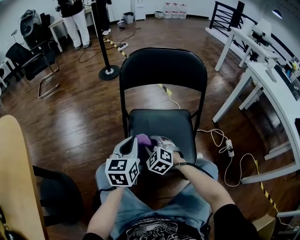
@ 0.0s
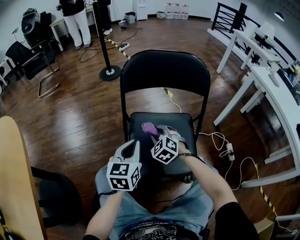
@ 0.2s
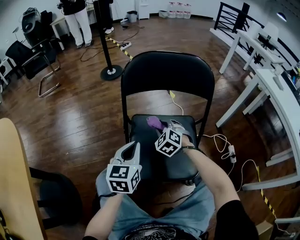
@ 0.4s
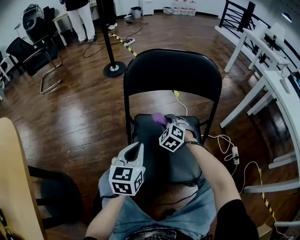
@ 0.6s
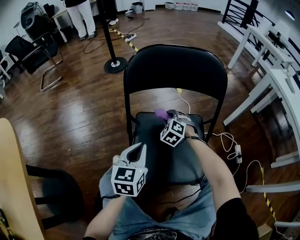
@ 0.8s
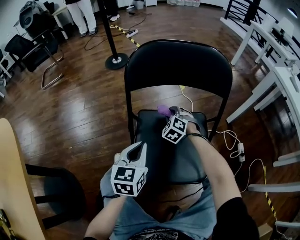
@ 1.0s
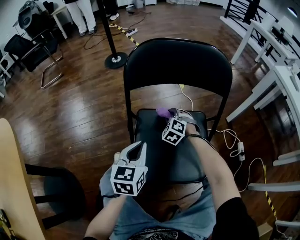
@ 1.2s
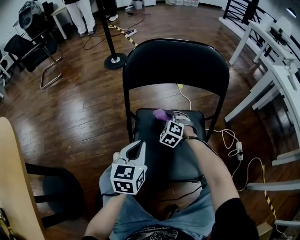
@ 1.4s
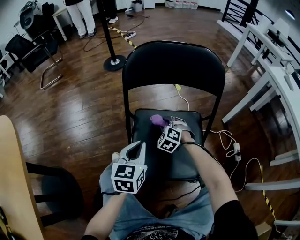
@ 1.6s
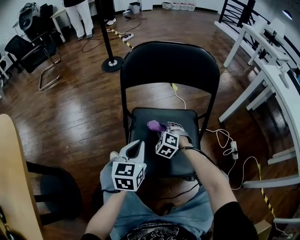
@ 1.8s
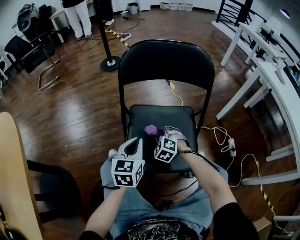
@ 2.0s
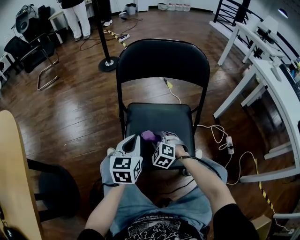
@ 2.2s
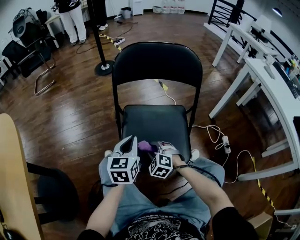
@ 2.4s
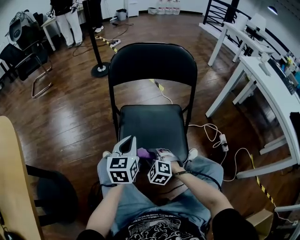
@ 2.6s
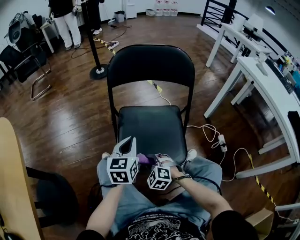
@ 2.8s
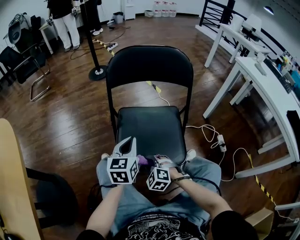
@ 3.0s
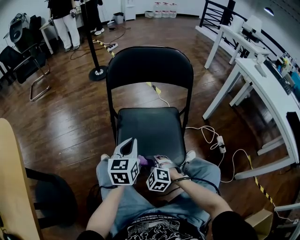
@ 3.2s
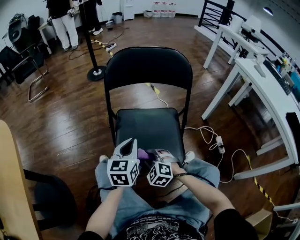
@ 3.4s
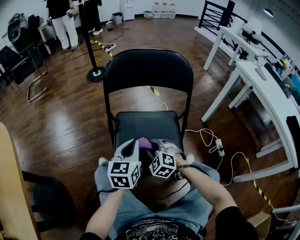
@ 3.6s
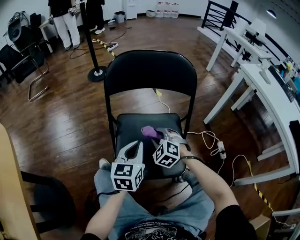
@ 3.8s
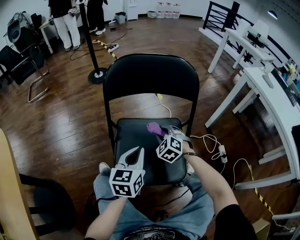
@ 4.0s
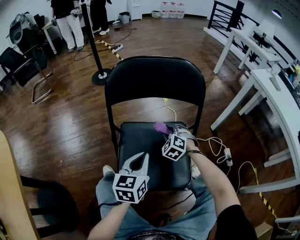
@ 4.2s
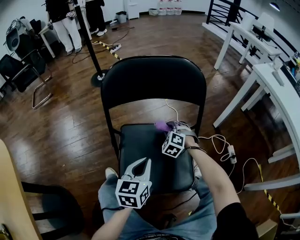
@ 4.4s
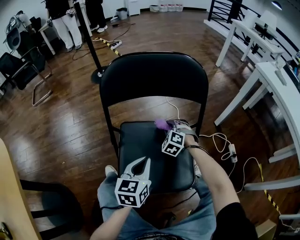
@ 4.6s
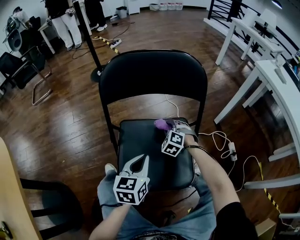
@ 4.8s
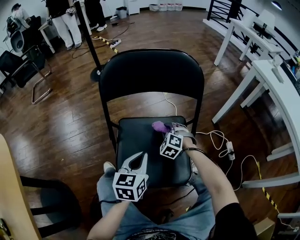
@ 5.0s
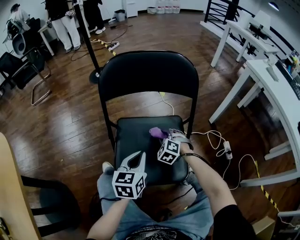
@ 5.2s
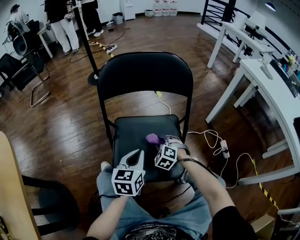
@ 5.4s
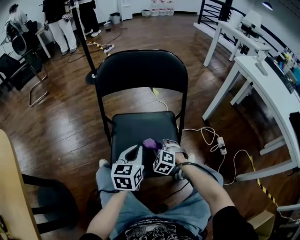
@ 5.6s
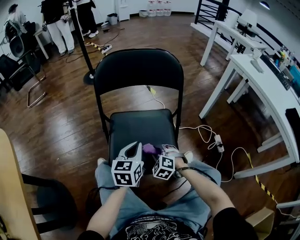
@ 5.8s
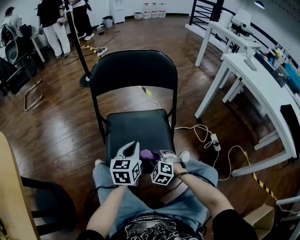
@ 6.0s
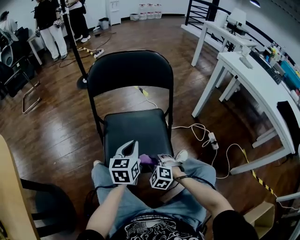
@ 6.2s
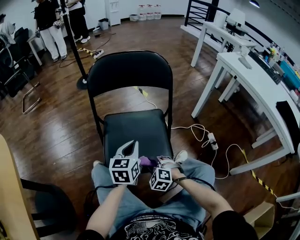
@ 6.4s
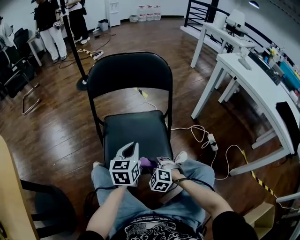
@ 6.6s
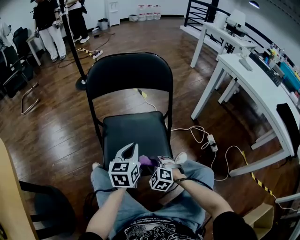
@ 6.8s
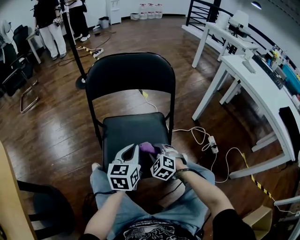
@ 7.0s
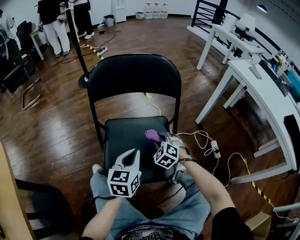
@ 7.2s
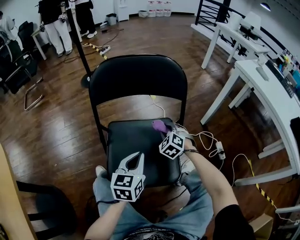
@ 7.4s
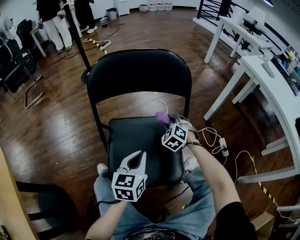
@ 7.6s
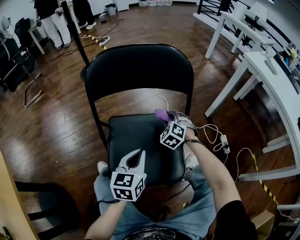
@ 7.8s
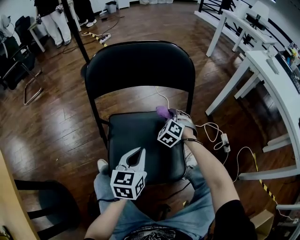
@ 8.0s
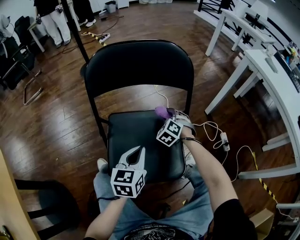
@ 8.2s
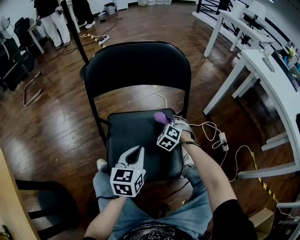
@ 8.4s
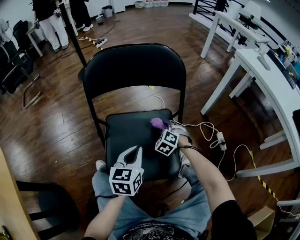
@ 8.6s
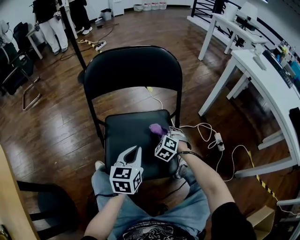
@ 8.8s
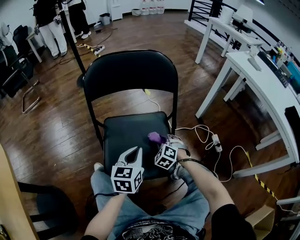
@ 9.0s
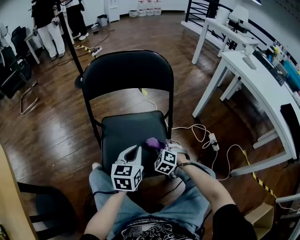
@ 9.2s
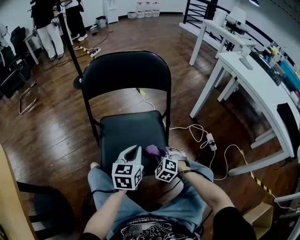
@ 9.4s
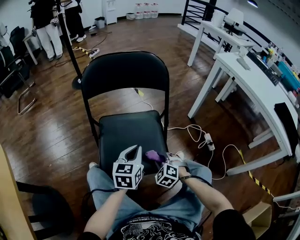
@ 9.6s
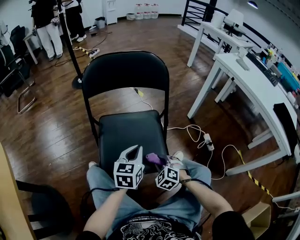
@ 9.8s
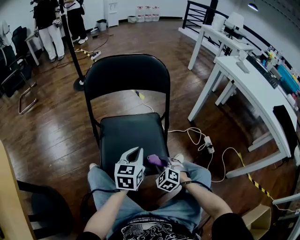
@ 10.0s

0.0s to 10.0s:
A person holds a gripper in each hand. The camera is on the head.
0.0s to 1.4s: The left gripper heads forward, covering some 5 cm, while the right gripper is displaced forward by roughly 20 cm.
1.4s to 2.8s: The right gripper travels backward by about 30 cm. The left gripper heads backward, covering approximately 5 cm.
2.8s to 4.2s: The left gripper is displaced to the right by some 5 cm; the right gripper travels forward and to the right by some 30 cm.
4.2s to 5.8s: The left gripper shifts by about 5 cm; the right gripper shifts roughly 20 cm backward.
5.8s to 7.2s: The right gripper shifts roughly 10 cm forward.
7.2s to 8.6s: The right gripper goes approximately 5 cm forward.
8.6s to 10.0s: The left gripper ends up some 5 cm from where it was; the right gripper travels backward by some 20 cm.

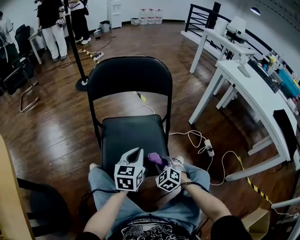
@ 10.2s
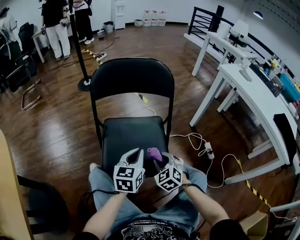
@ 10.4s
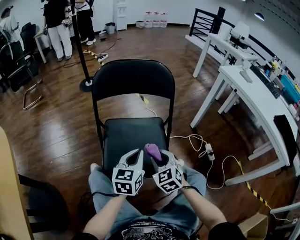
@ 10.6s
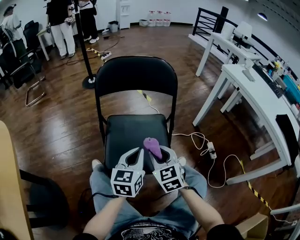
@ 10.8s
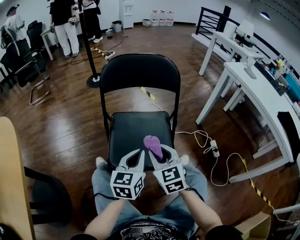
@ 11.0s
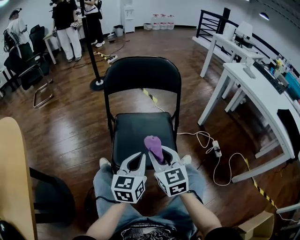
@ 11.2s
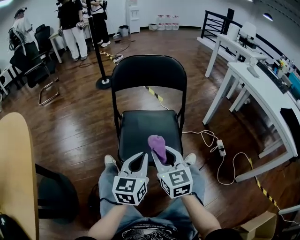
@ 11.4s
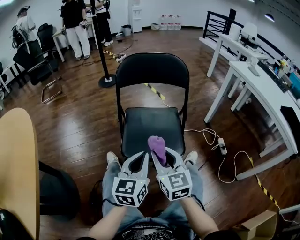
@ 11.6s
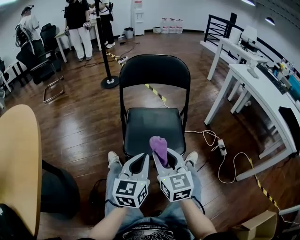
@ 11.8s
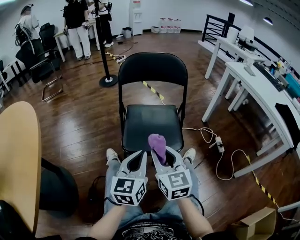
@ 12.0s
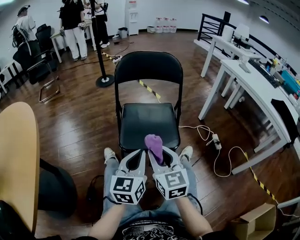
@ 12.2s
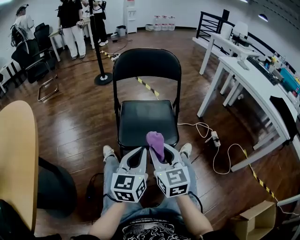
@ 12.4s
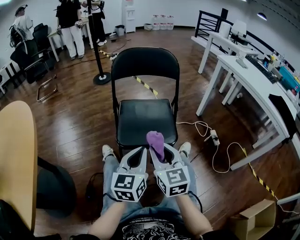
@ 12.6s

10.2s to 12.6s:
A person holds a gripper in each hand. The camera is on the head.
10.2s to 11.4s: The right gripper travels upward and to the left by approximately 25 cm, and angles its fingers upward, by approximately 30 degrees. The left gripper is displaced backward, upward and to the left by some 15 cm.
11.4s to 12.6s: The grippers both shift backward by about 10 cm.

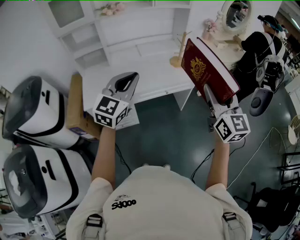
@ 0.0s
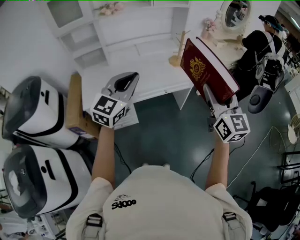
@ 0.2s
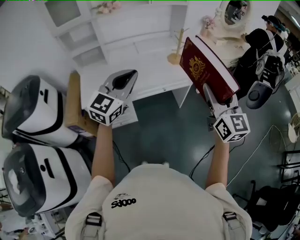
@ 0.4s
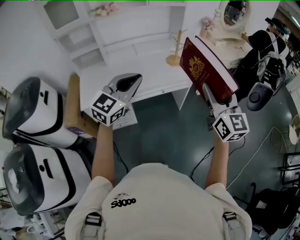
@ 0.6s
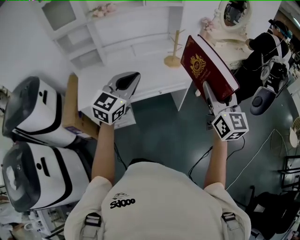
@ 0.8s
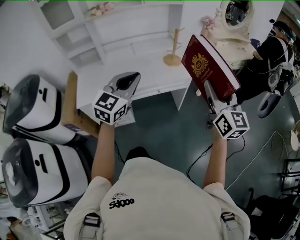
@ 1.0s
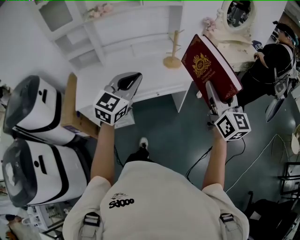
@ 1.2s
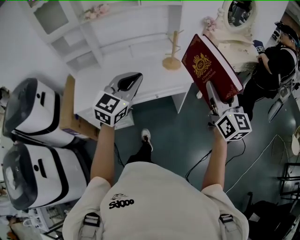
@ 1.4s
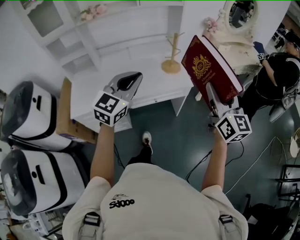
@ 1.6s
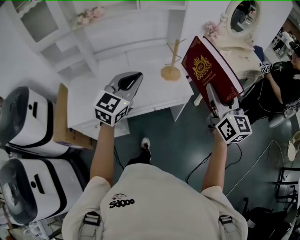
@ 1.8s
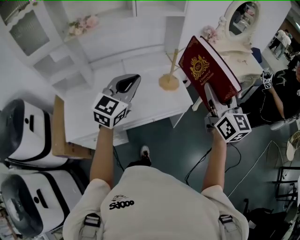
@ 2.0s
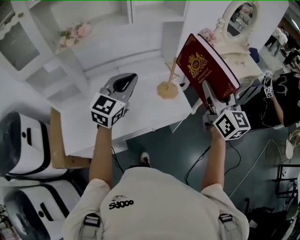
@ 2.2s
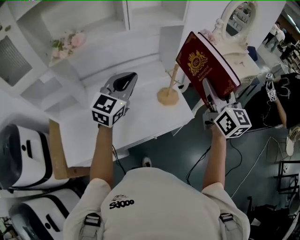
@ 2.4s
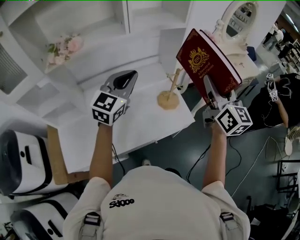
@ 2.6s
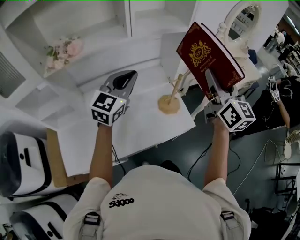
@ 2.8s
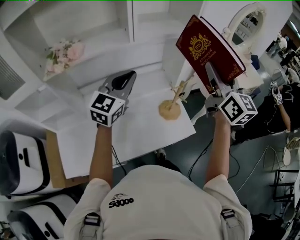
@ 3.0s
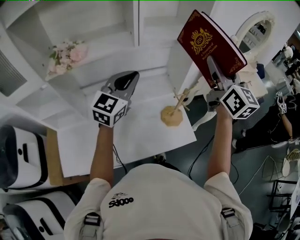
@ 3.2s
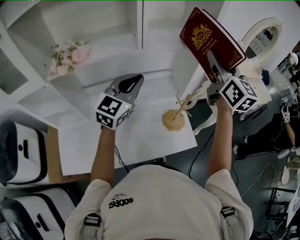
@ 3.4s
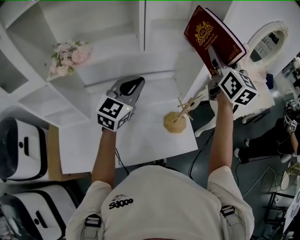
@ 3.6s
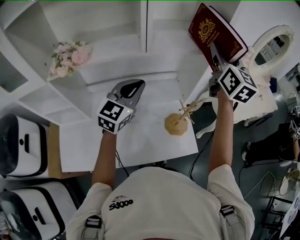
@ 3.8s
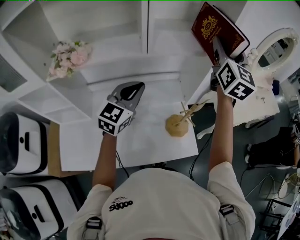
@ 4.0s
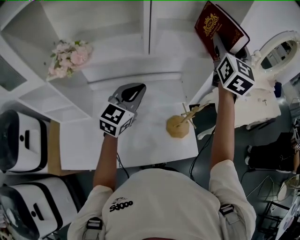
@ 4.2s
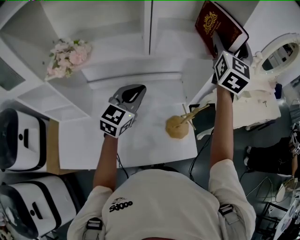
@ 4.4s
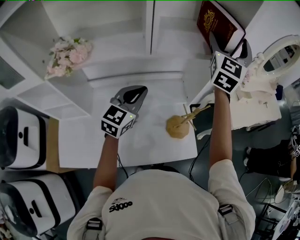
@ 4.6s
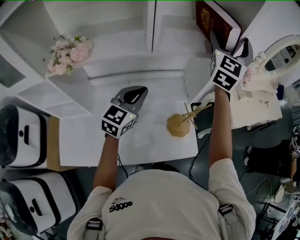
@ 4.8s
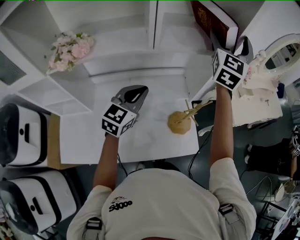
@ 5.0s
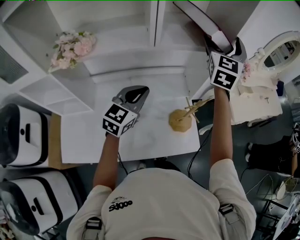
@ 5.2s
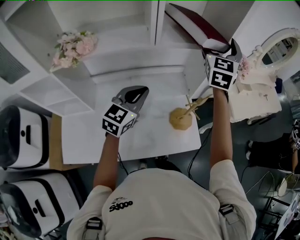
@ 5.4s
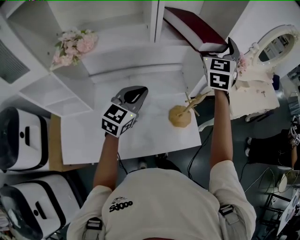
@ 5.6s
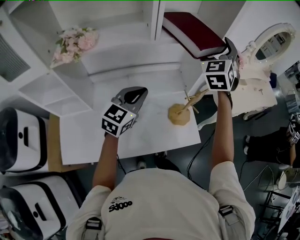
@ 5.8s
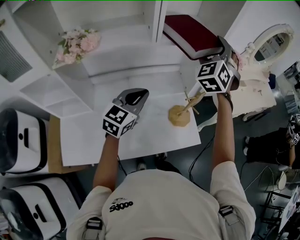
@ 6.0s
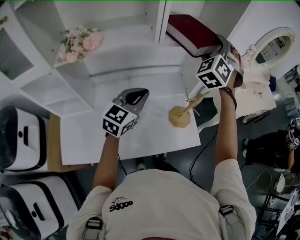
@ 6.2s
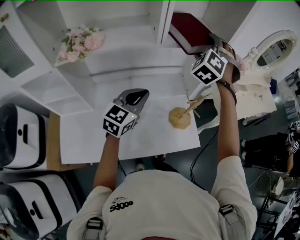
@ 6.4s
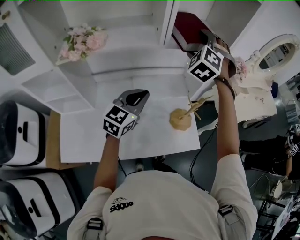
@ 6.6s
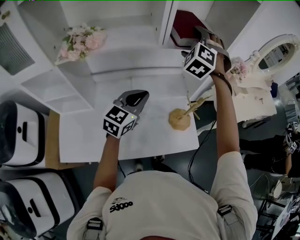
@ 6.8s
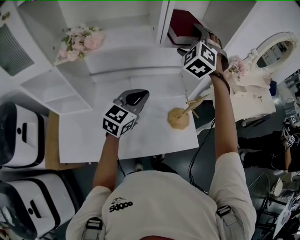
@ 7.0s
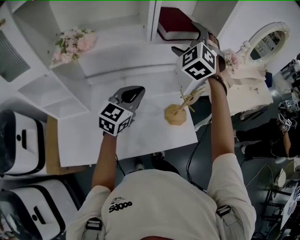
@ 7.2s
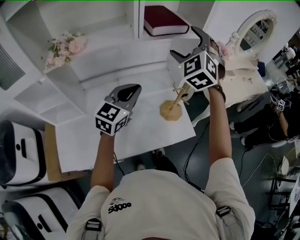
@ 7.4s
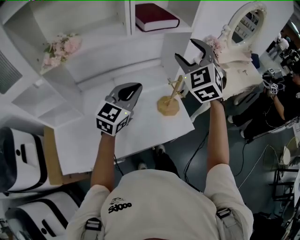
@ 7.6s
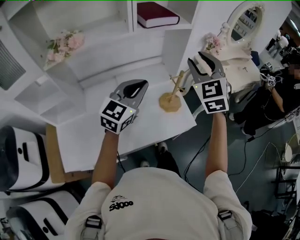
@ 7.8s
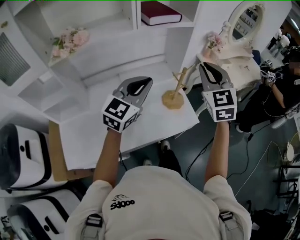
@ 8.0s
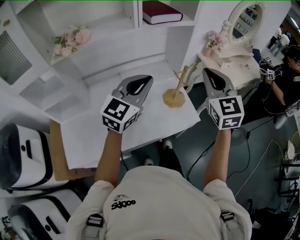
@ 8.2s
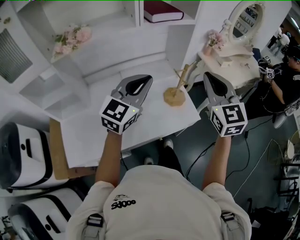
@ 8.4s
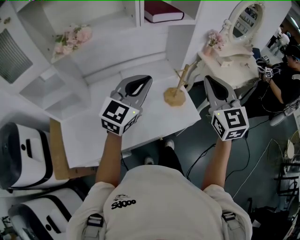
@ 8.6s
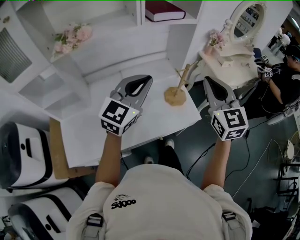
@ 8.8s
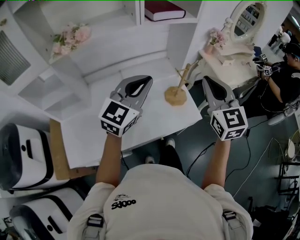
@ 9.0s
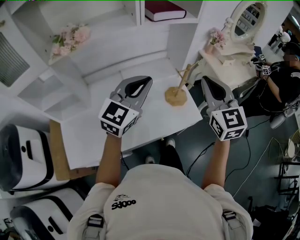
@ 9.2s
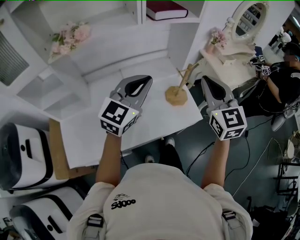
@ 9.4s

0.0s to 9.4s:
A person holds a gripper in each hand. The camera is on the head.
0.0s to 1.6s: The grippers both shift forward and to the right by some 15 cm.
1.6s to 3.2s: Both grippers travel together forward, about 40 cm.
3.2s to 4.8s: The left gripper heads downward, covering roughly 10 cm. The right gripper is displaced forward by roughly 20 cm, swivels roughly 40 degrees, and opens.
4.8s to 6.2s: The right gripper moves downward and backward, some 10 cm, and twists roughly 50 degrees counterclockwise, seen from behind. The left gripper shifts approximately 5 cm backward.
6.2s to 7.8s: The right gripper goes roughly 20 cm backward and to the right, swivels some 30 degrees, and closes its fingers, while the left gripper shifts about 10 cm to the right and backward.
7.8s to 9.4s: The right gripper goes approximately 10 cm backward, and turns by approximately 20 degrees.

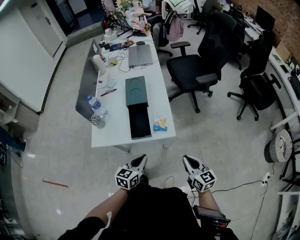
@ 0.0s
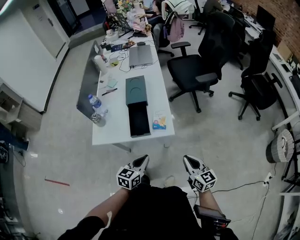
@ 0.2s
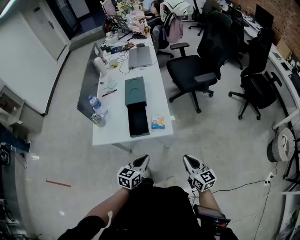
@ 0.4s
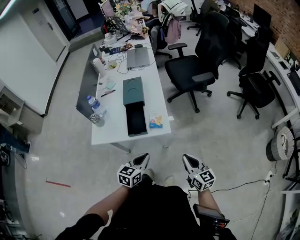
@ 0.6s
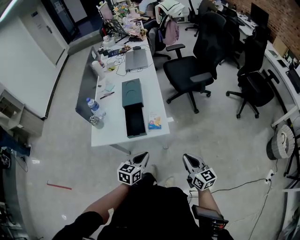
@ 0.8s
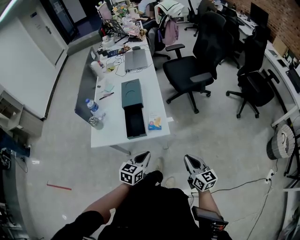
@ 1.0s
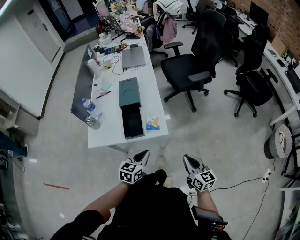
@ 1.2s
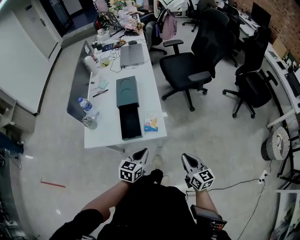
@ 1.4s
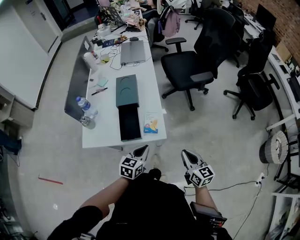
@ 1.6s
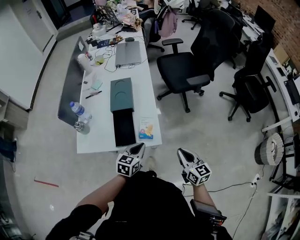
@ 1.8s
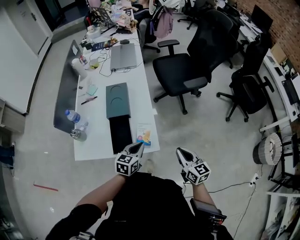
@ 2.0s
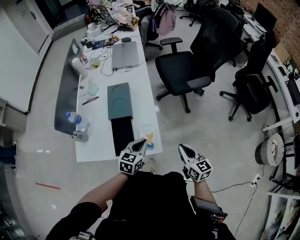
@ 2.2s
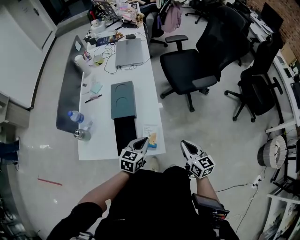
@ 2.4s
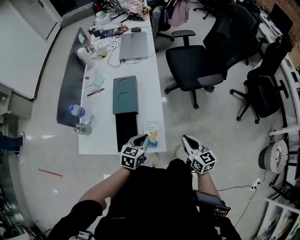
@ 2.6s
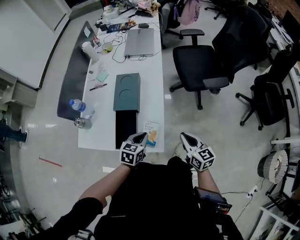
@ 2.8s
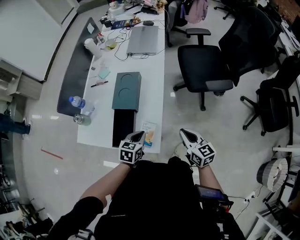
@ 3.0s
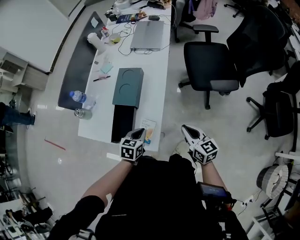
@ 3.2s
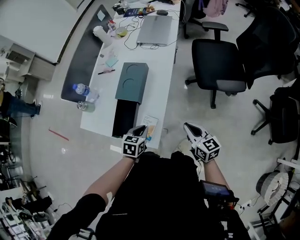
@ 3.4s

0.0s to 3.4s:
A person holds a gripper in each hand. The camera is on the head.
0.0s to 1.6s: The right gripper shifts about 5 cm to the right; the left gripper shifts some 10 cm to the right and forward.
1.6s to 3.4s: The right gripper shifts by about 25 cm, and changes its angle by roughly 30 degrees. The left gripper changes place by about 20 cm, and changes its angle by roughly 30 degrees.
